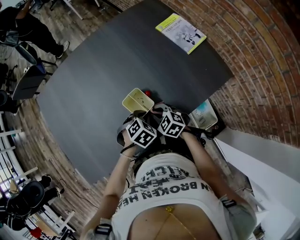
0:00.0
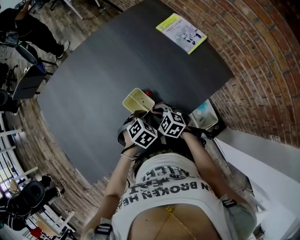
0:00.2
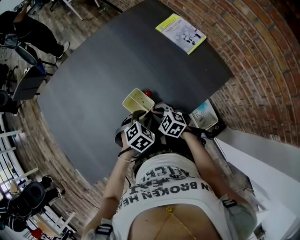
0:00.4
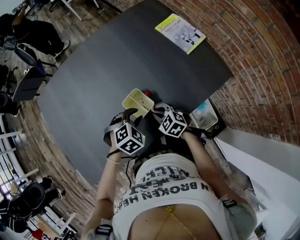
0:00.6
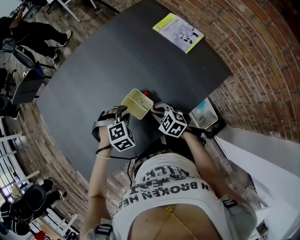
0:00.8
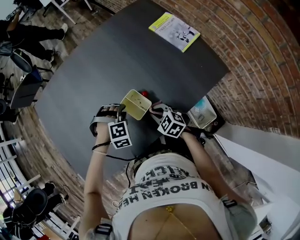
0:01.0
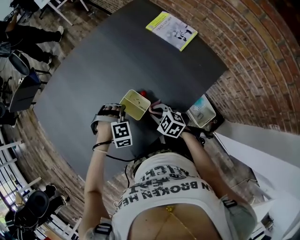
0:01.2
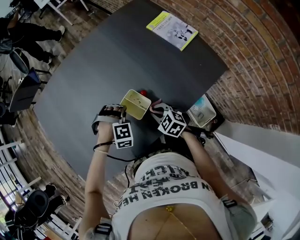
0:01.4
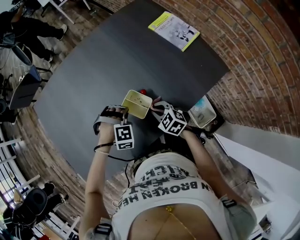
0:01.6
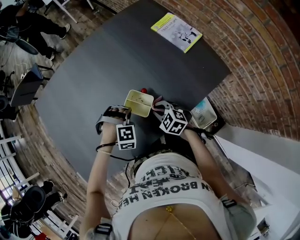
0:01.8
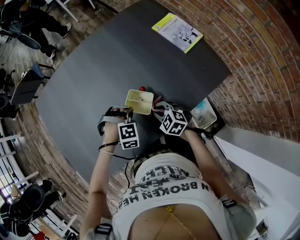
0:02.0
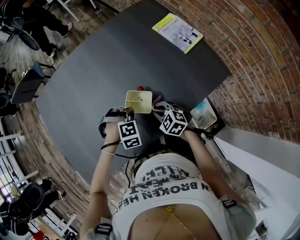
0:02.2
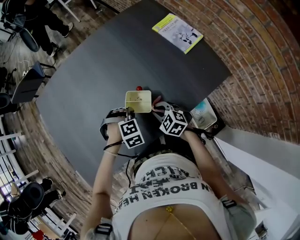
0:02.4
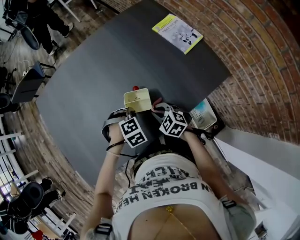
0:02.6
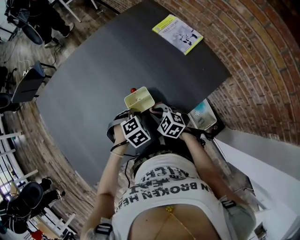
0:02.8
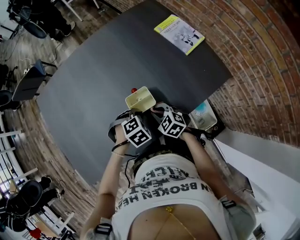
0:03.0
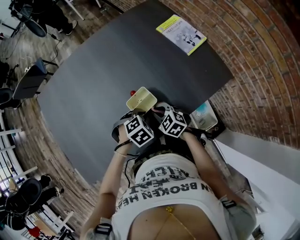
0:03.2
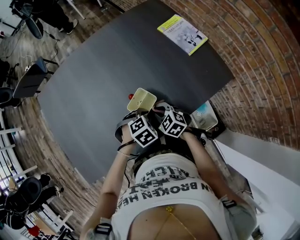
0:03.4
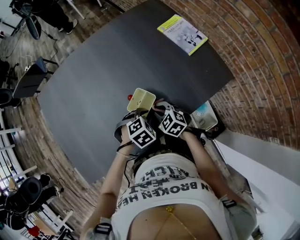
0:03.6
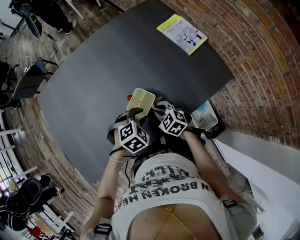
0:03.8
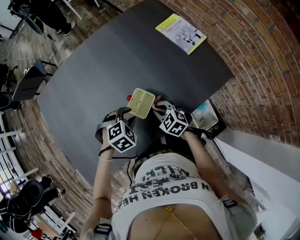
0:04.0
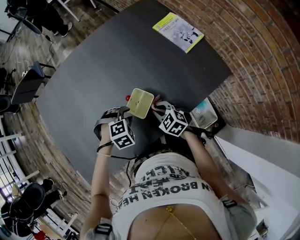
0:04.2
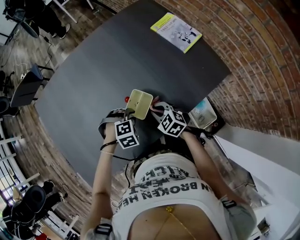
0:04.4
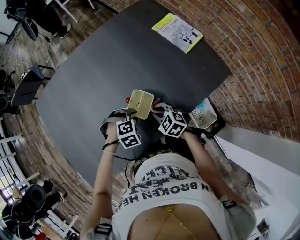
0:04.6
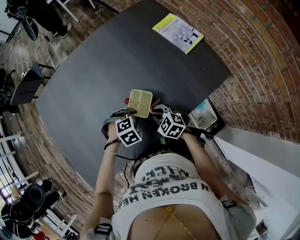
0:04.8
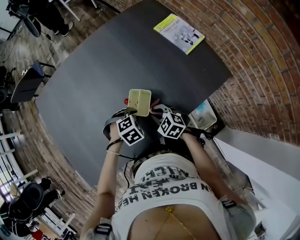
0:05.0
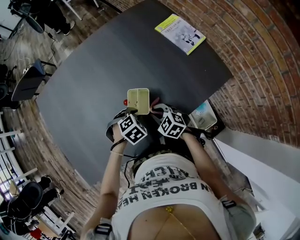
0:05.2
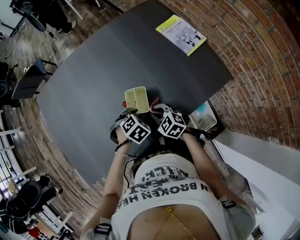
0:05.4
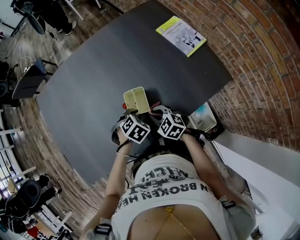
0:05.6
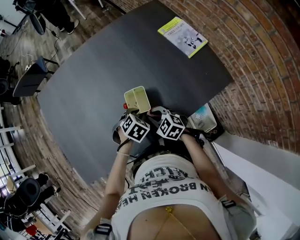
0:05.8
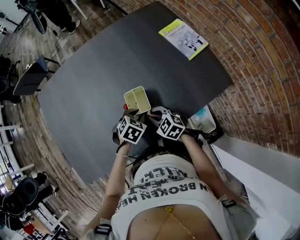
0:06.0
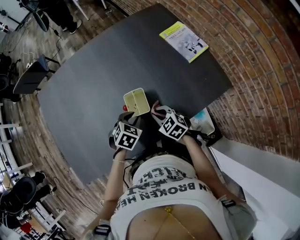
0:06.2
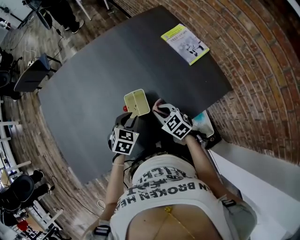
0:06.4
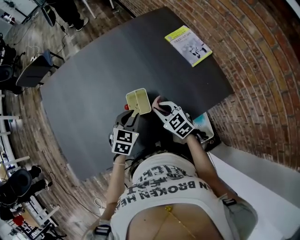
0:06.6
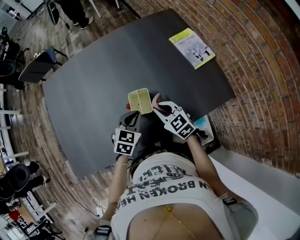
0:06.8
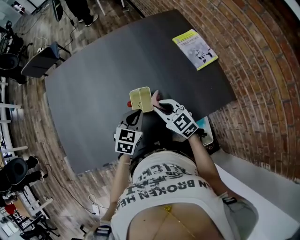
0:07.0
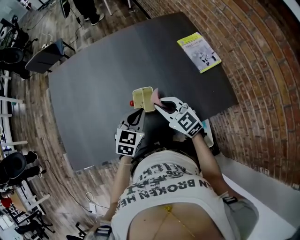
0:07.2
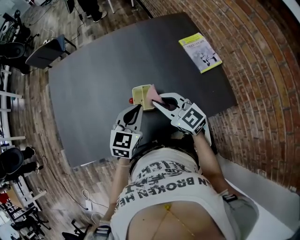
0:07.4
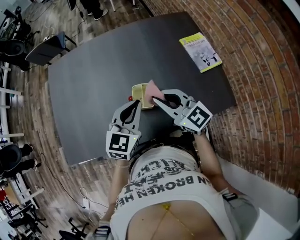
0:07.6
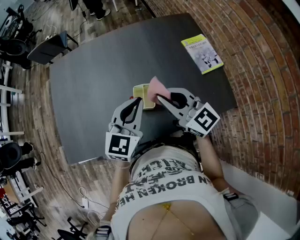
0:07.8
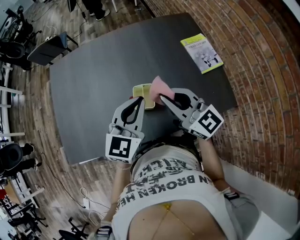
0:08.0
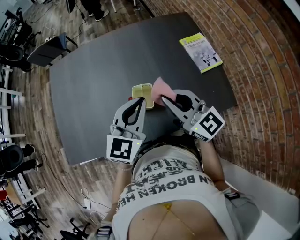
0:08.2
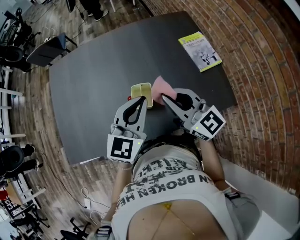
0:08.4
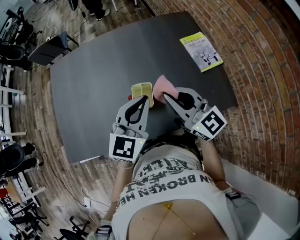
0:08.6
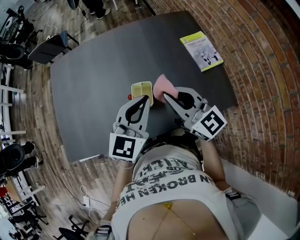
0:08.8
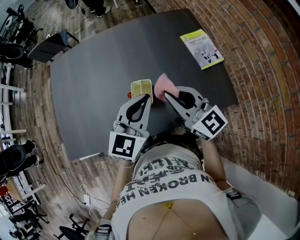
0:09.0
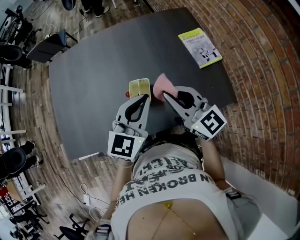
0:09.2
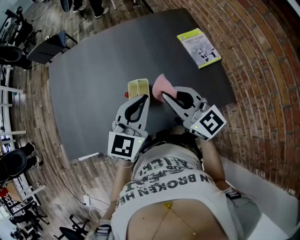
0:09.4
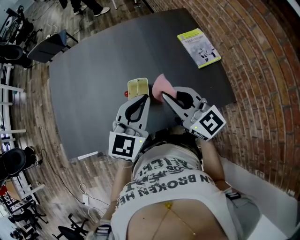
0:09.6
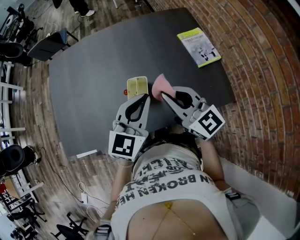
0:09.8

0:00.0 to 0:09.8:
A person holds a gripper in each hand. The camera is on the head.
0:00.0 to 0:01.4: The left gripper is displaced to the left by approximately 5 cm, and rotates around the line of its fingers by some 60 degrees, clockwise from behind.
0:01.4 to 0:02.8: The left gripper moves roughly 5 cm, and rotates approximately 40 degrees.
0:02.8 to 0:04.2: The left gripper travels to the left by about 5 cm, and opens.
0:04.2 to 0:05.6: The left gripper turns by approximately 30 degrees.
0:05.6 to 0:07.0: Both grippers travel together upward, roughly 10 cm. The left gripper angles its fingers upward, by some 40 degrees.
0:07.0 to 0:08.4: Both grippers travel together upward, approximately 20 cm. The right gripper rotates approximately 30 degrees. The left gripper rotates some 30 degrees.
0:08.4 to 0:09.8: The grippers move only a little.

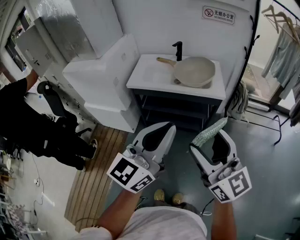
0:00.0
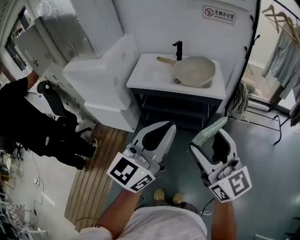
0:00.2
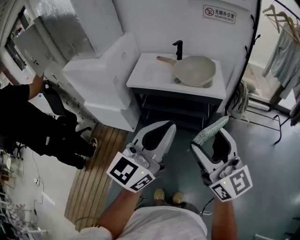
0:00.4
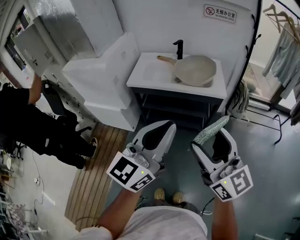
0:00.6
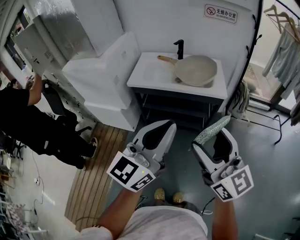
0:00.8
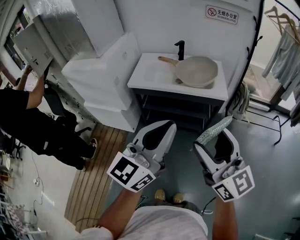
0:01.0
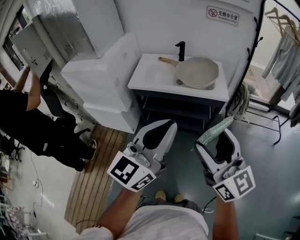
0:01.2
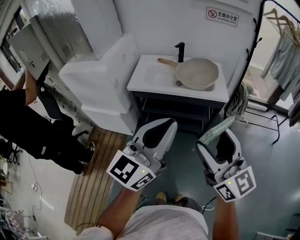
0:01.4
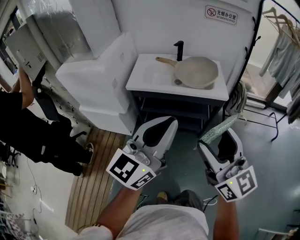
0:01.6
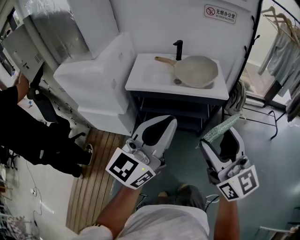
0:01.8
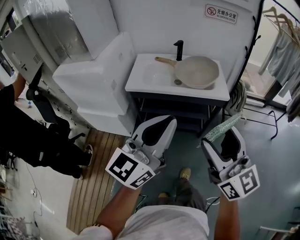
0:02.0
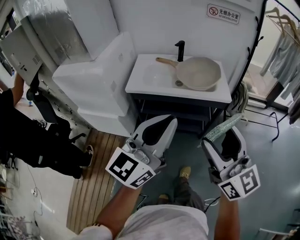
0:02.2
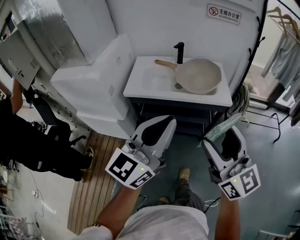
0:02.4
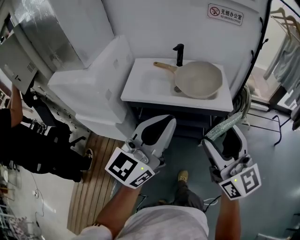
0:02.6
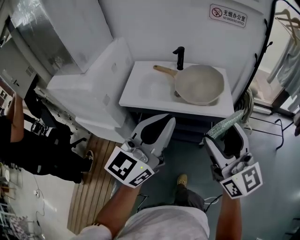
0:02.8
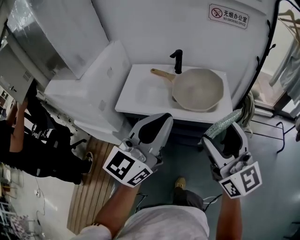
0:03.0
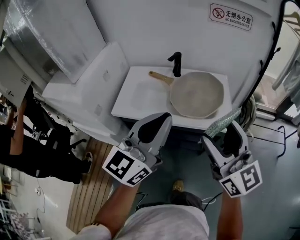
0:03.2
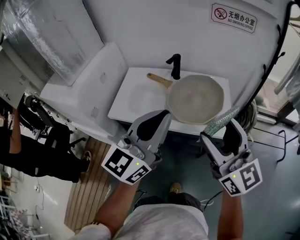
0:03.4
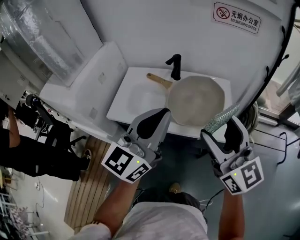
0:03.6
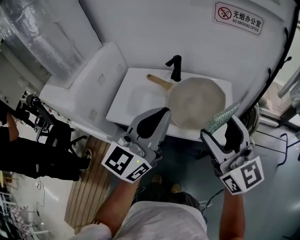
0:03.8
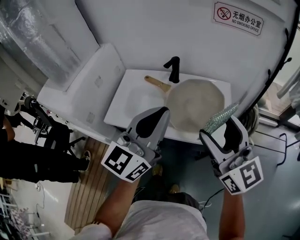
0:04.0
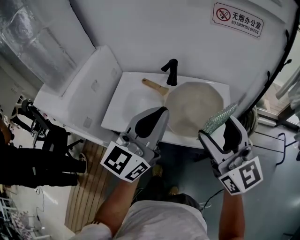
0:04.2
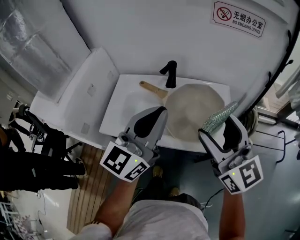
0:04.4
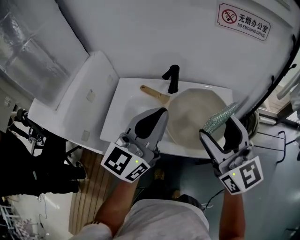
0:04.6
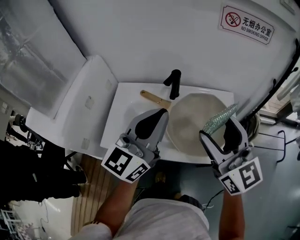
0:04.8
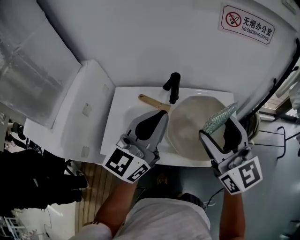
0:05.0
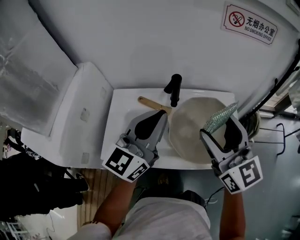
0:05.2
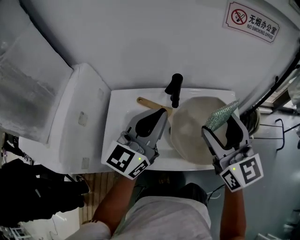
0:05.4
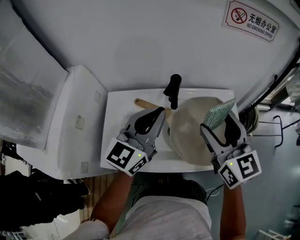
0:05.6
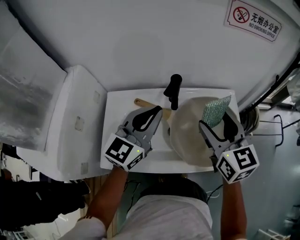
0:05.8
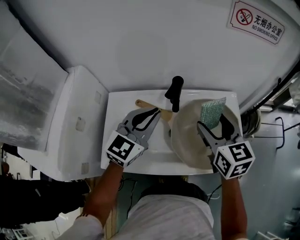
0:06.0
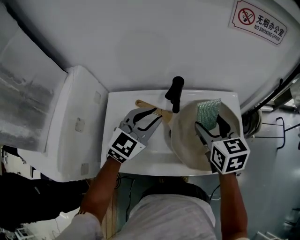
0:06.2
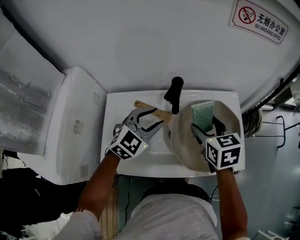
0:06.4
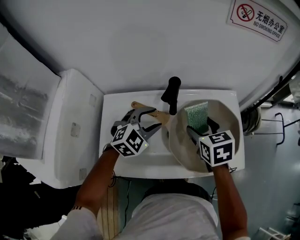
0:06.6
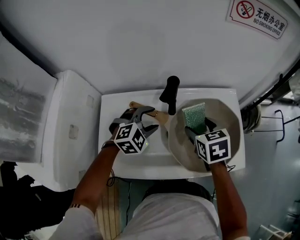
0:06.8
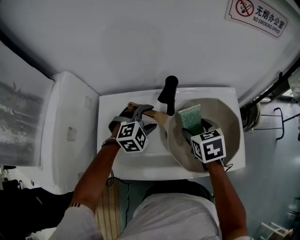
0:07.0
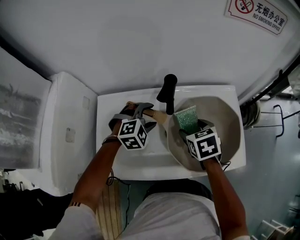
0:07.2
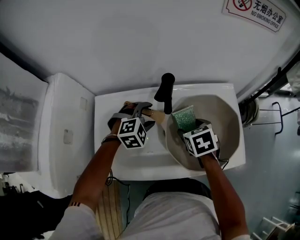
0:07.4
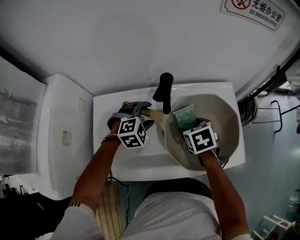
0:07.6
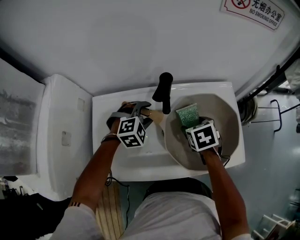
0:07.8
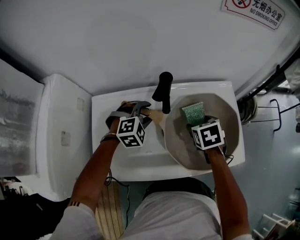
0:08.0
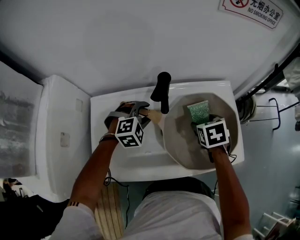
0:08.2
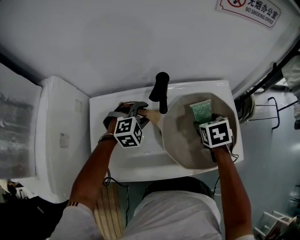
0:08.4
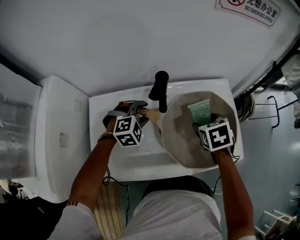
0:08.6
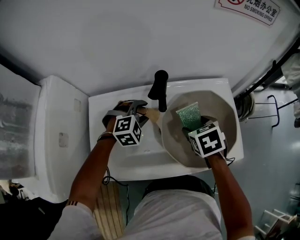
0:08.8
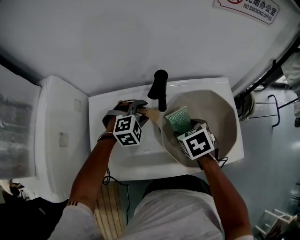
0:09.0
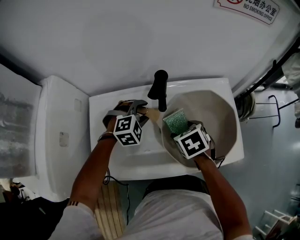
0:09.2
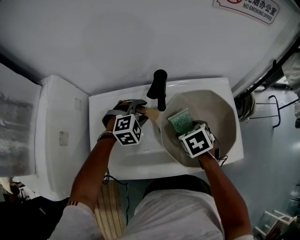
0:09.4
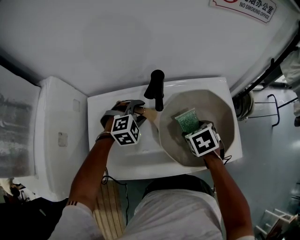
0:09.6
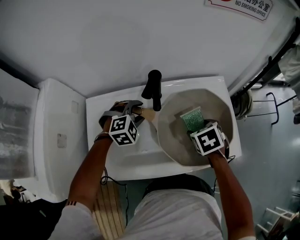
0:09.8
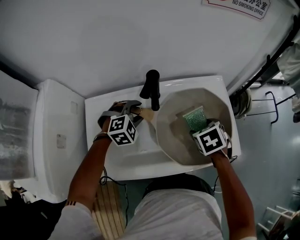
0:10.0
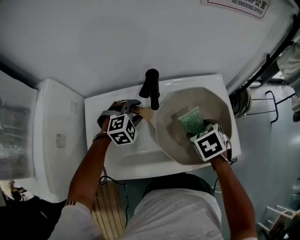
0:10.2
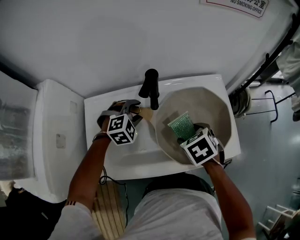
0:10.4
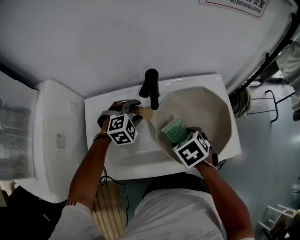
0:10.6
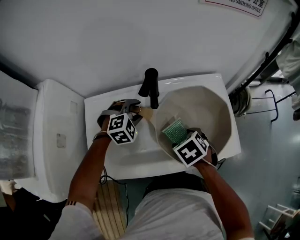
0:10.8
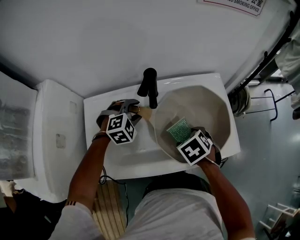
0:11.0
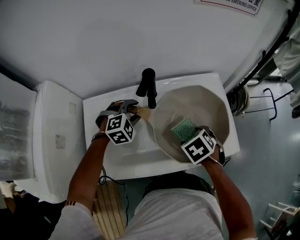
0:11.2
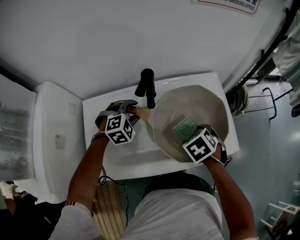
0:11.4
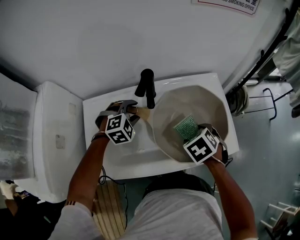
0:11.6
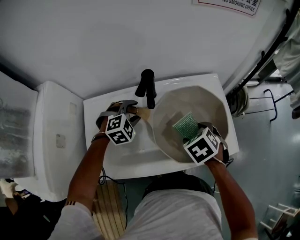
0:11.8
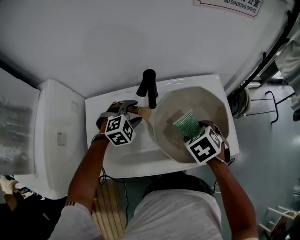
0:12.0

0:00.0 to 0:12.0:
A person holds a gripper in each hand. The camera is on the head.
0:00.0 to 0:01.6: The left gripper travels to the left by about 5 cm.
0:01.6 to 0:03.0: The two grippers go roughly 20 cm forward.
0:03.0 to 0:04.4: Both grippers travel together forward, roughly 20 cm.
0:04.4 to 0:06.0: The left gripper moves forward, downward and to the left, approximately 25 cm, and swivels approximately 30 degrees; the right gripper heads forward and downward, covering approximately 20 cm, and changes its angle by approximately 30 degrees.
0:06.0 to 0:07.6: The two grippers go some 20 cm downward. The right gripper tips its fingers downward by approximately 40 degrees, while the left gripper points its fingers about 40 degrees further downward, and opens.
0:07.6 to 0:09.0: The right gripper moves roughly 10 cm to the right and comes back.
0:10.4 to 0:12.0: The grippers stay close to where they were, moving slightly.

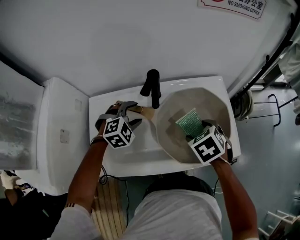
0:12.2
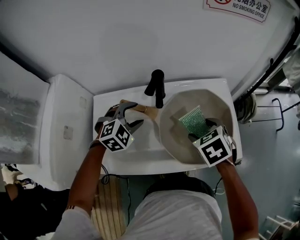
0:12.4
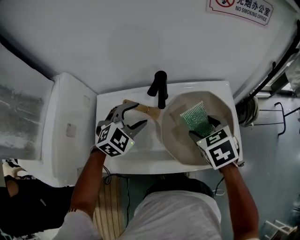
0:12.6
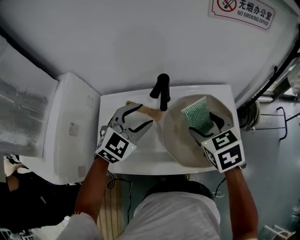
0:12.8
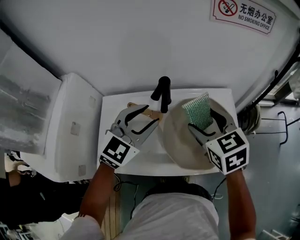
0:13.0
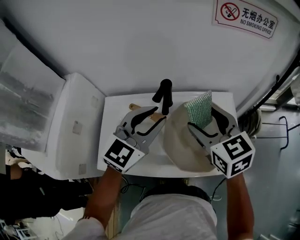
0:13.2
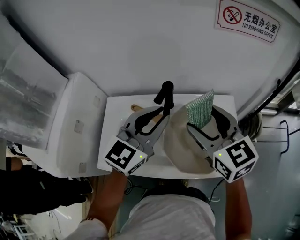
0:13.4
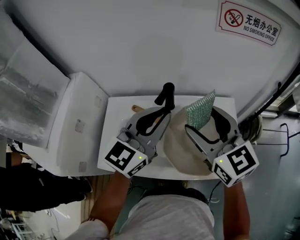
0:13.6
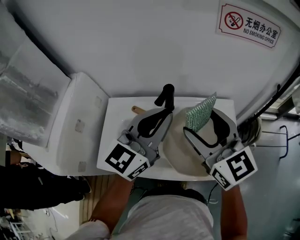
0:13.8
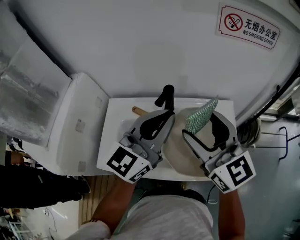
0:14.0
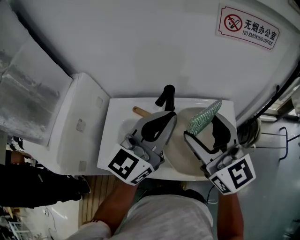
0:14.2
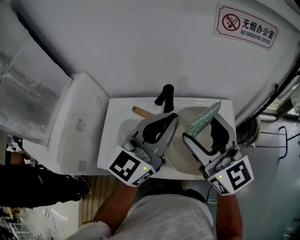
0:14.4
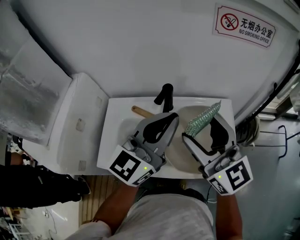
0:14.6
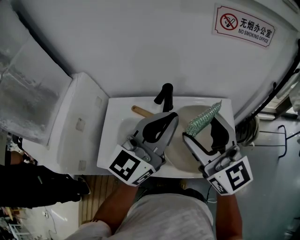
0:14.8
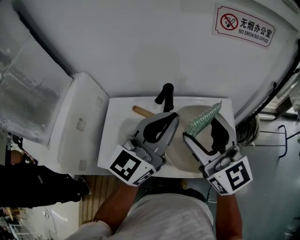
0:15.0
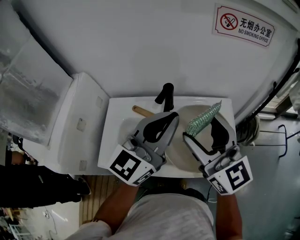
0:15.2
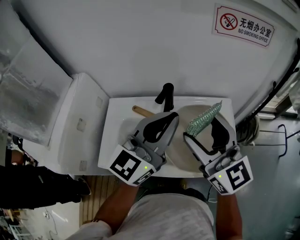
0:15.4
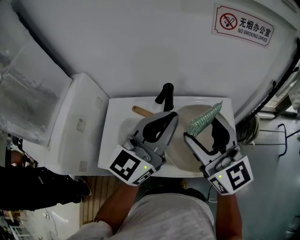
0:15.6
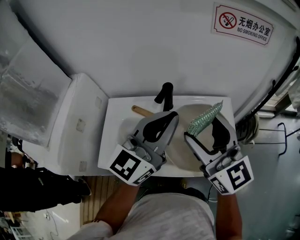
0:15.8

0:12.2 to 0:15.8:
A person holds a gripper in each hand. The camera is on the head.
0:12.2 to 0:14.0: The two grippers go some 25 cm upward. The left gripper tilts its fingers roughly 60 degrees upward, and closes its fingers, while the right gripper points its fingers about 60 degrees further upward.
0:14.0 to 0:15.8: There are only small adjustments of the grippers.
